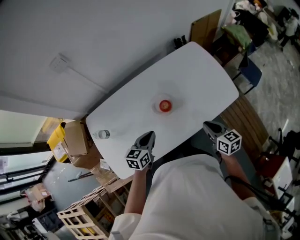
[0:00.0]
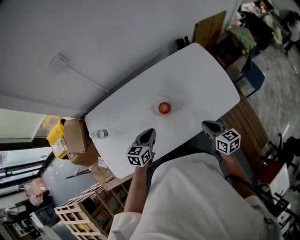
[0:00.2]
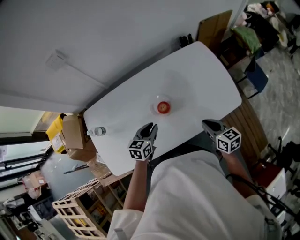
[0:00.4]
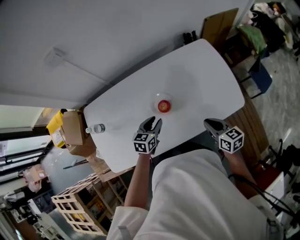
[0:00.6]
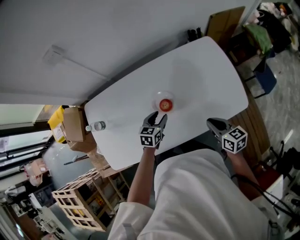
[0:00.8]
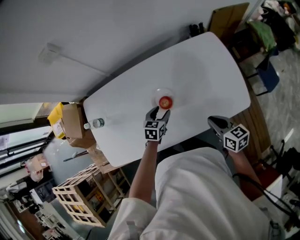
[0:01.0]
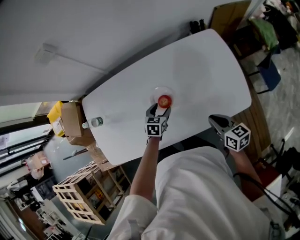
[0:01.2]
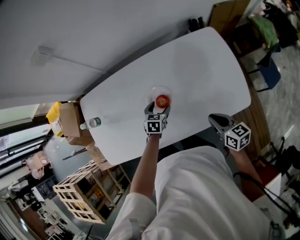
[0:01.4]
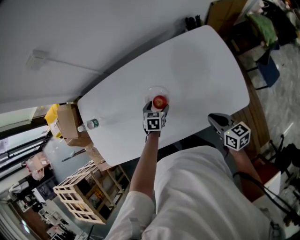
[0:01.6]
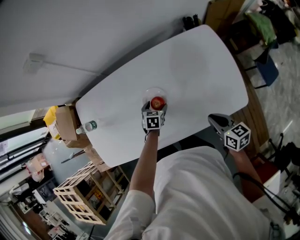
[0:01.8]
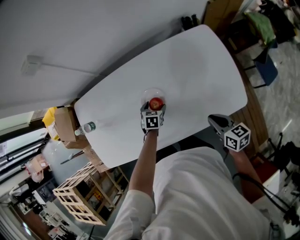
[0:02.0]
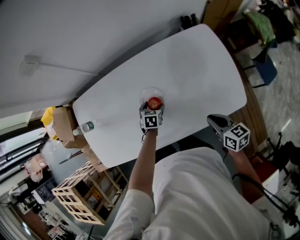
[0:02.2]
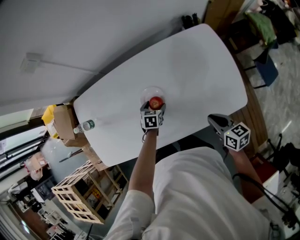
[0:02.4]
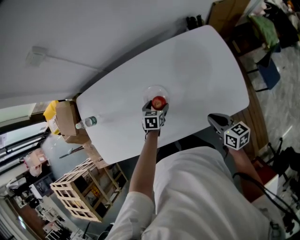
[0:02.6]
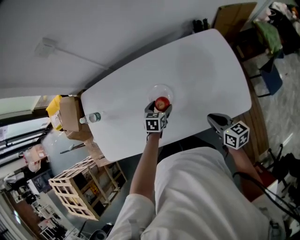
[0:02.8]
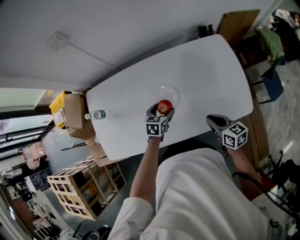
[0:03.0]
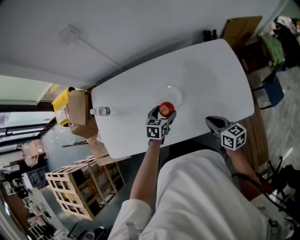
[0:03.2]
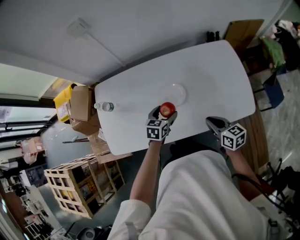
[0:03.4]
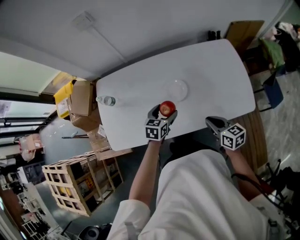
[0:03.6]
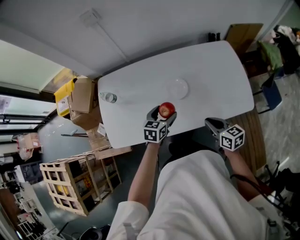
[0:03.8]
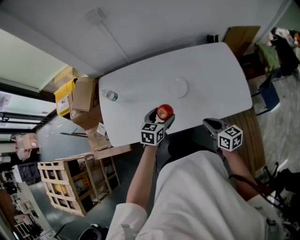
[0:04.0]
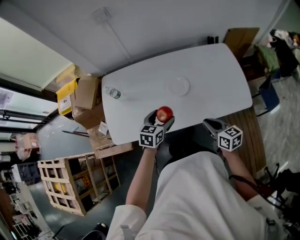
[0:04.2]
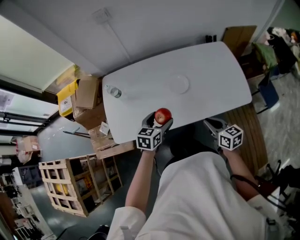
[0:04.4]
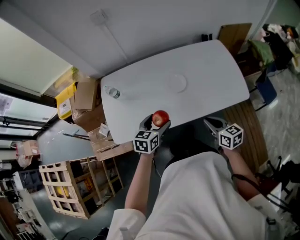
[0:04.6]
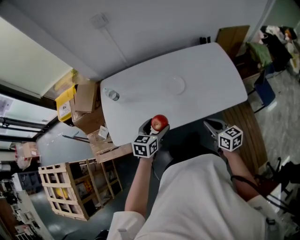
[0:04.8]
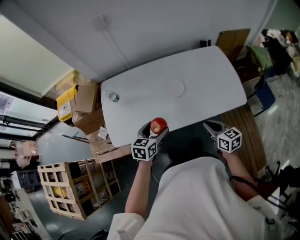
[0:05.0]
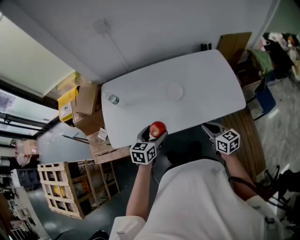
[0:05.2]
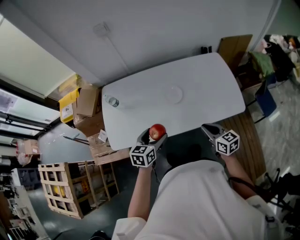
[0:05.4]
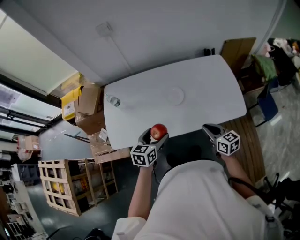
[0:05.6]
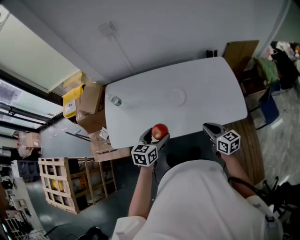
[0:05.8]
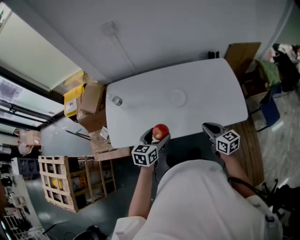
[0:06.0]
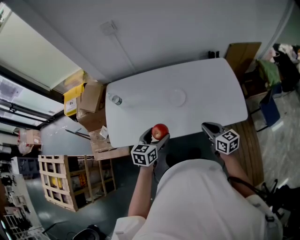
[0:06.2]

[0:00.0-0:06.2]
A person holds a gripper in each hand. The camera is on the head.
0:00.0 to 0:01.6: The left gripper goes about 25 cm downward, forward and to the right, turns by about 30 degrees, and opens its fingers. The right gripper shifts roughly 10 cm forward, to the right and downward.
0:01.6 to 0:03.2: The left gripper goes some 10 cm upward. The right gripper heads to the left, covering approximately 5 cm.
0:03.2 to 0:04.6: The right gripper travels backward and to the left by approximately 15 cm. The left gripper shifts approximately 25 cm backward, to the left and upward.
0:04.6 to 0:06.2: The right gripper travels forward by about 5 cm.

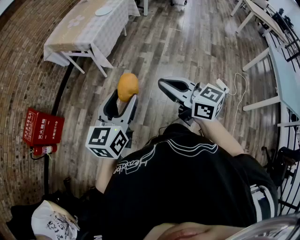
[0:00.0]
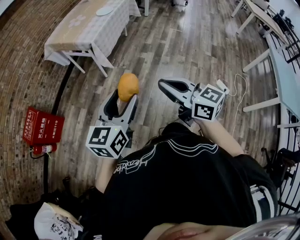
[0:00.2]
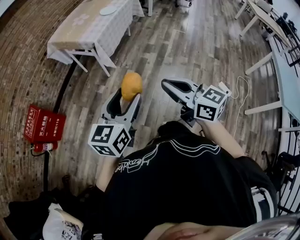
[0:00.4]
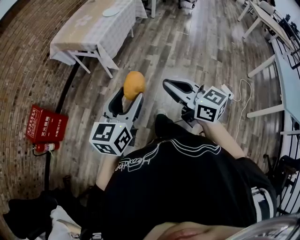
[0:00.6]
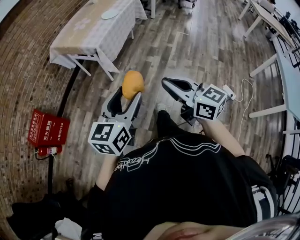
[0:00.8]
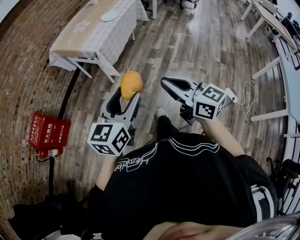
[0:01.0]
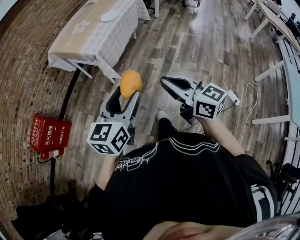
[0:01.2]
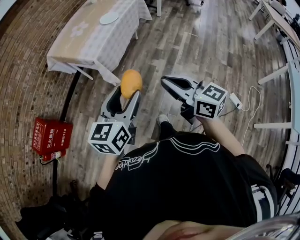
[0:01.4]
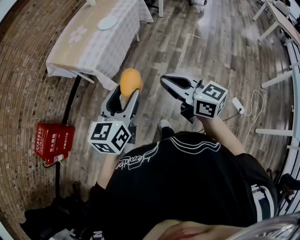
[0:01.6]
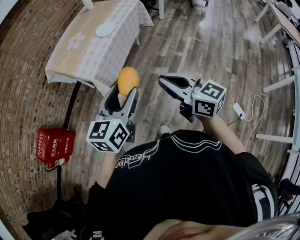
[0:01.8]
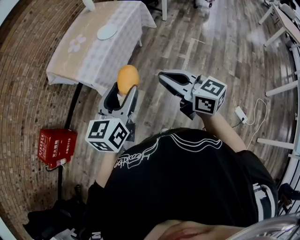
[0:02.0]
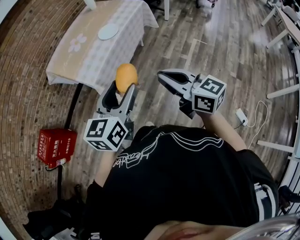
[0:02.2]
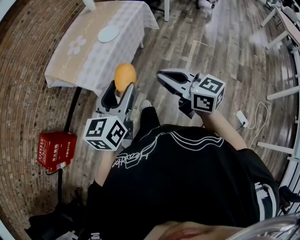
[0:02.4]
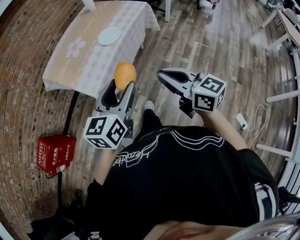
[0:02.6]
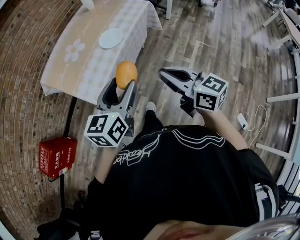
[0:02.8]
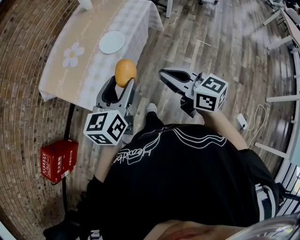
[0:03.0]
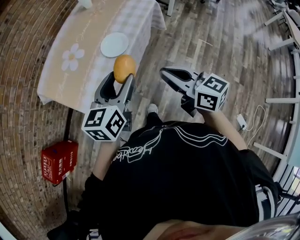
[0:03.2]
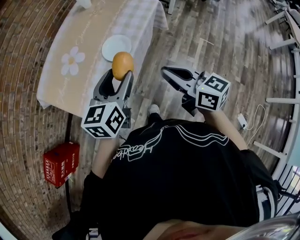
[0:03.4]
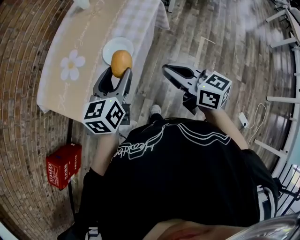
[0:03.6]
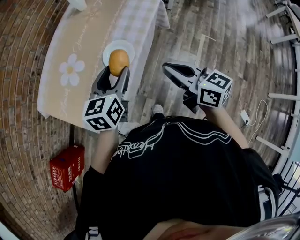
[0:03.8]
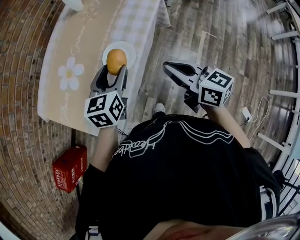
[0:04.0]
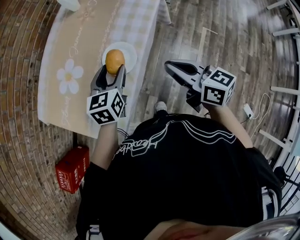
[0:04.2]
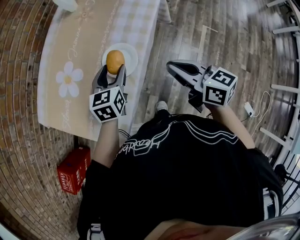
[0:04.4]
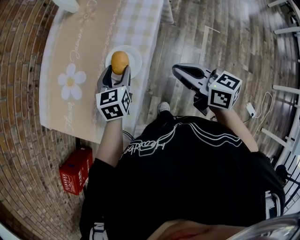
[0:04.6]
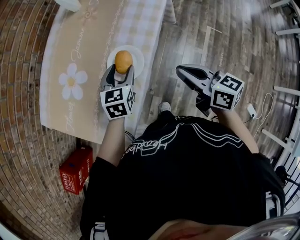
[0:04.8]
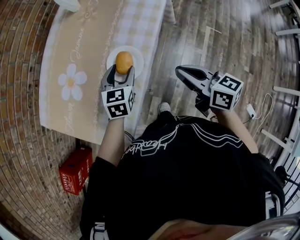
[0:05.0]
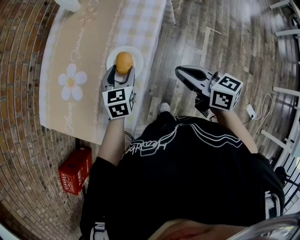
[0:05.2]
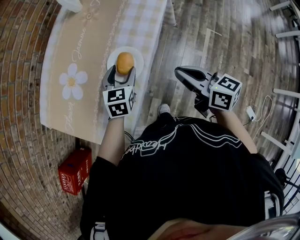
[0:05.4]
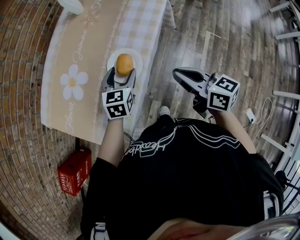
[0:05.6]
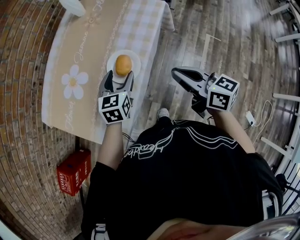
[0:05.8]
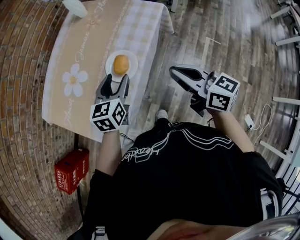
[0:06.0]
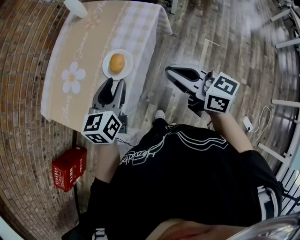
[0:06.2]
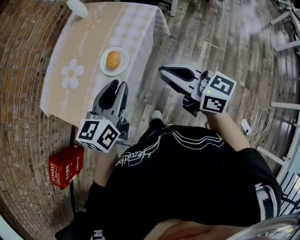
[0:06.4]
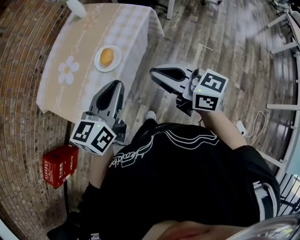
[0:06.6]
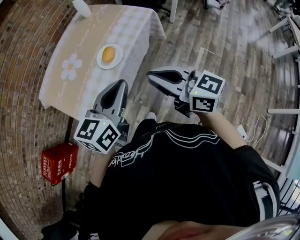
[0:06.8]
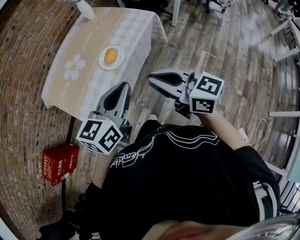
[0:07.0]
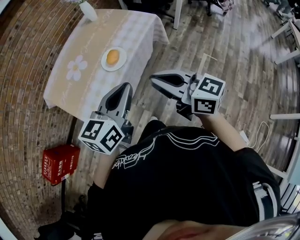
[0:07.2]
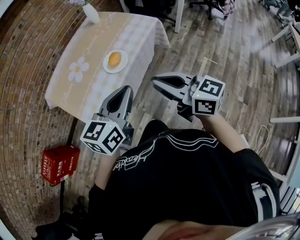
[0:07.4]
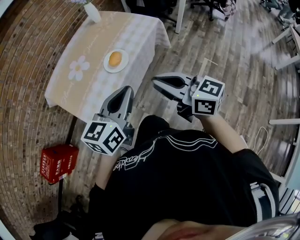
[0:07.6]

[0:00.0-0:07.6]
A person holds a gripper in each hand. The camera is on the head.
0:00.0 to 0:01.6: The left gripper moves forward and to the right, about 30 cm. Meanwhile the right gripper goes about 30 cm forward.
0:01.6 to 0:03.0: The grippers both shift forward by approximately 40 cm.
0:03.0 to 0:04.6: Both grippers travel together forward and downward, roughly 30 cm. The left gripper swivels about 20 degrees.
0:04.6 to 0:06.0: The right gripper travels upward by some 5 cm, while the left gripper shifts some 10 cm upward and backward.
0:06.0 to 0:07.6: The right gripper travels backward and upward by approximately 20 cm, and rotates approximately 20 degrees. The left gripper shifts about 30 cm backward and upward, and closes its fingers.

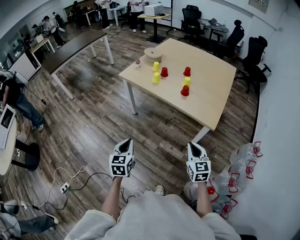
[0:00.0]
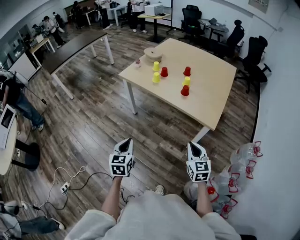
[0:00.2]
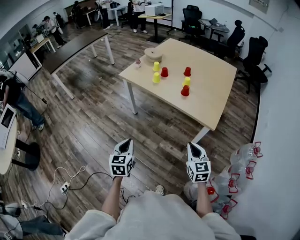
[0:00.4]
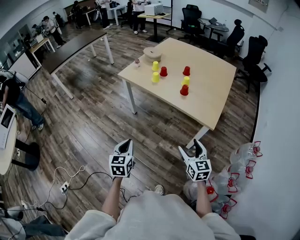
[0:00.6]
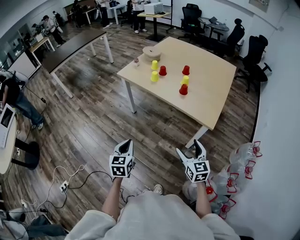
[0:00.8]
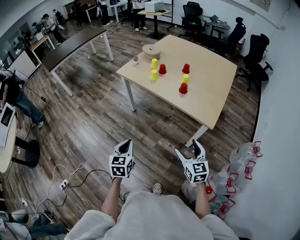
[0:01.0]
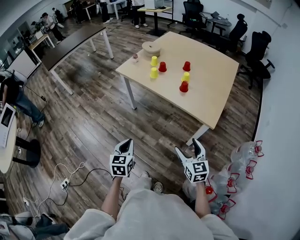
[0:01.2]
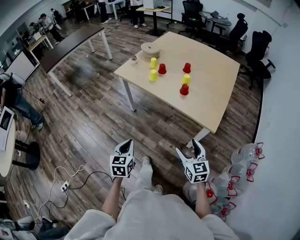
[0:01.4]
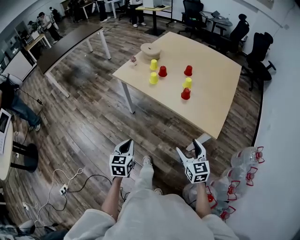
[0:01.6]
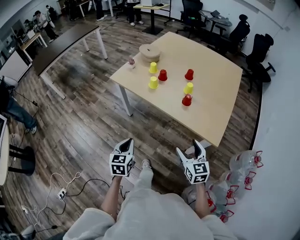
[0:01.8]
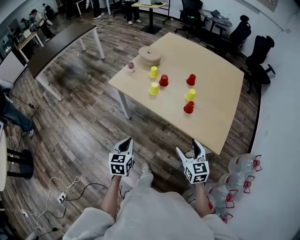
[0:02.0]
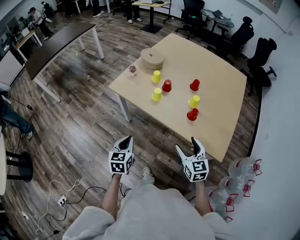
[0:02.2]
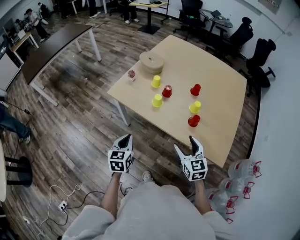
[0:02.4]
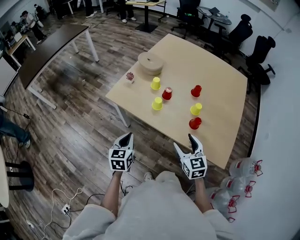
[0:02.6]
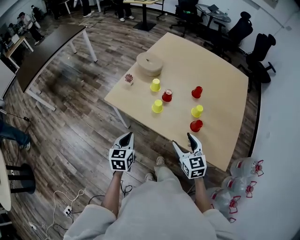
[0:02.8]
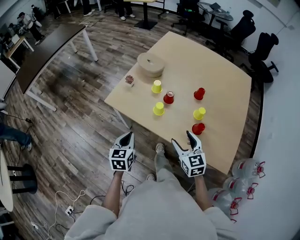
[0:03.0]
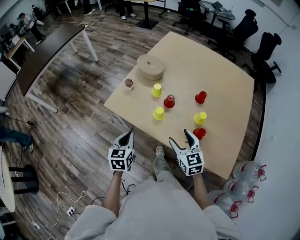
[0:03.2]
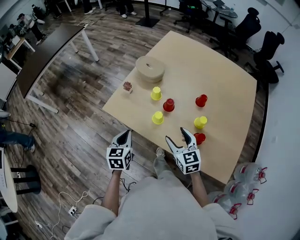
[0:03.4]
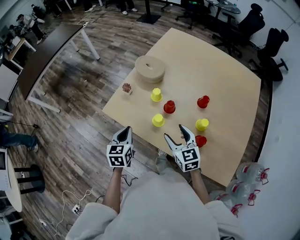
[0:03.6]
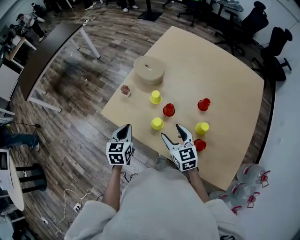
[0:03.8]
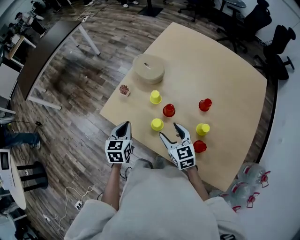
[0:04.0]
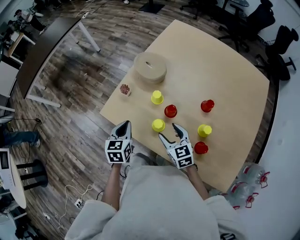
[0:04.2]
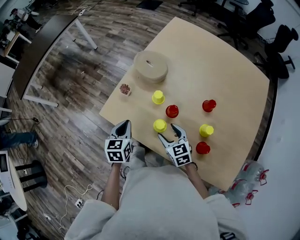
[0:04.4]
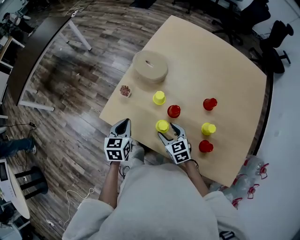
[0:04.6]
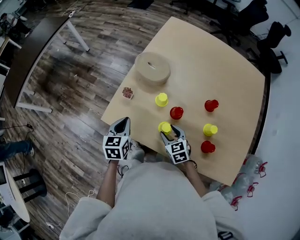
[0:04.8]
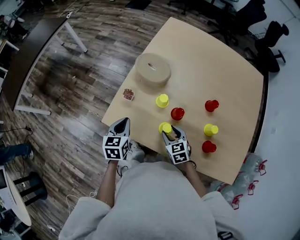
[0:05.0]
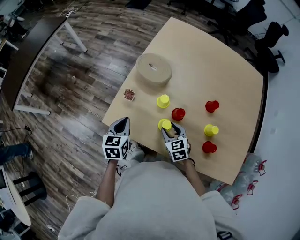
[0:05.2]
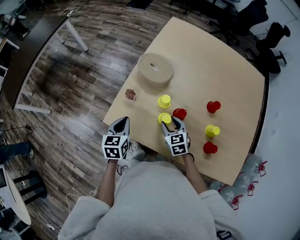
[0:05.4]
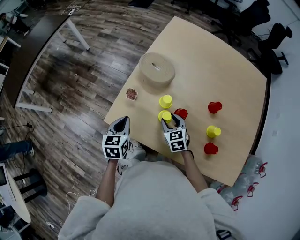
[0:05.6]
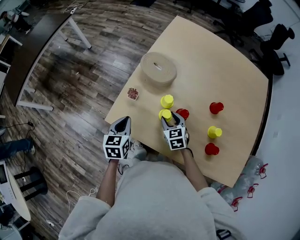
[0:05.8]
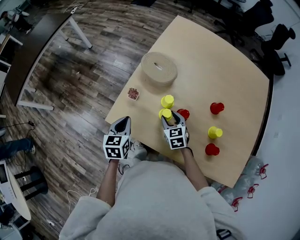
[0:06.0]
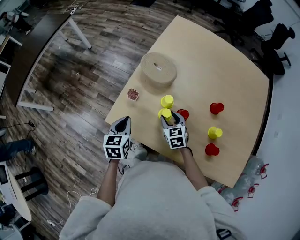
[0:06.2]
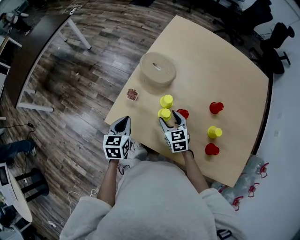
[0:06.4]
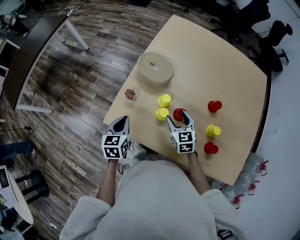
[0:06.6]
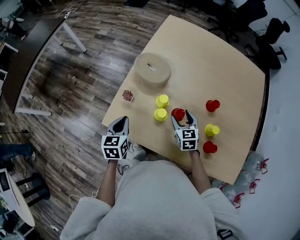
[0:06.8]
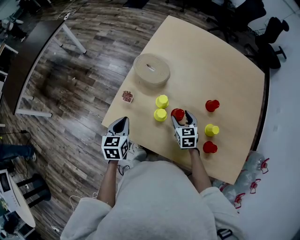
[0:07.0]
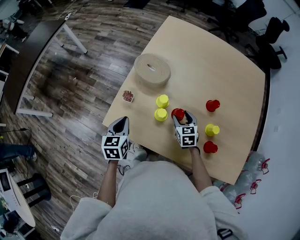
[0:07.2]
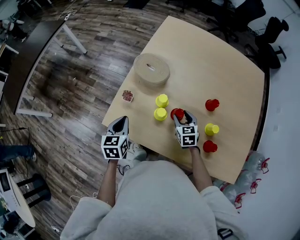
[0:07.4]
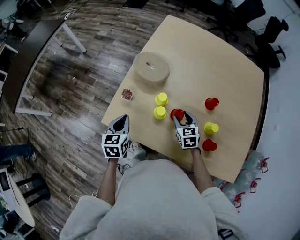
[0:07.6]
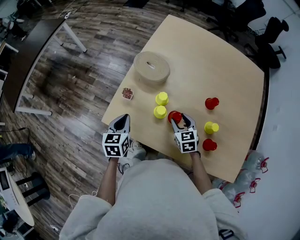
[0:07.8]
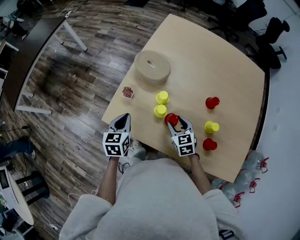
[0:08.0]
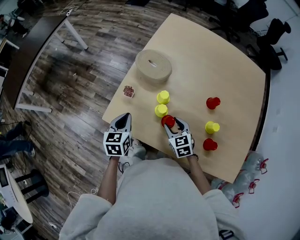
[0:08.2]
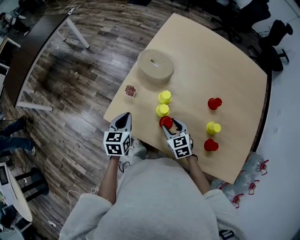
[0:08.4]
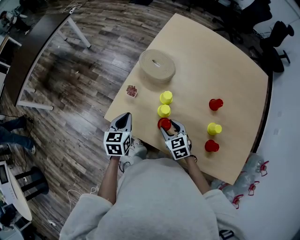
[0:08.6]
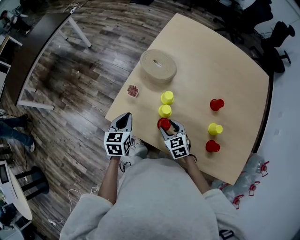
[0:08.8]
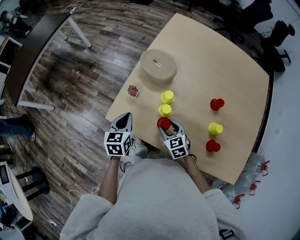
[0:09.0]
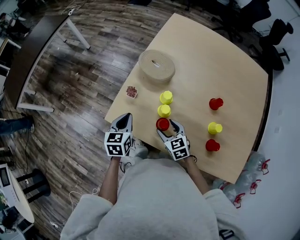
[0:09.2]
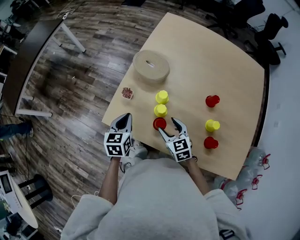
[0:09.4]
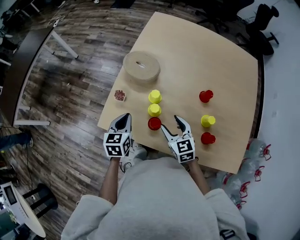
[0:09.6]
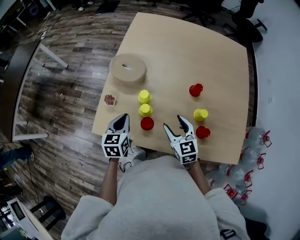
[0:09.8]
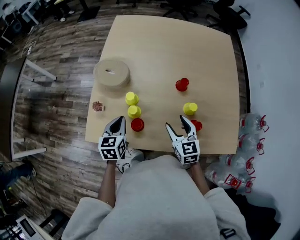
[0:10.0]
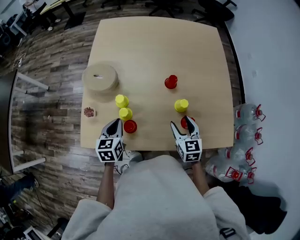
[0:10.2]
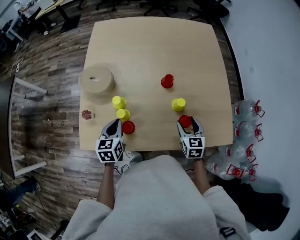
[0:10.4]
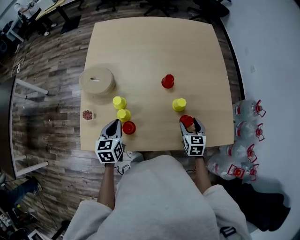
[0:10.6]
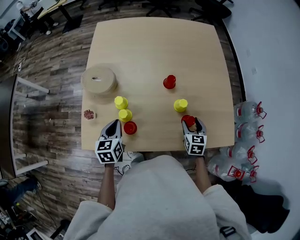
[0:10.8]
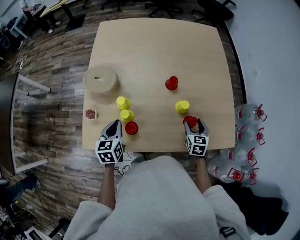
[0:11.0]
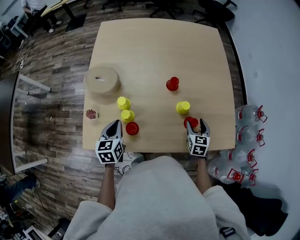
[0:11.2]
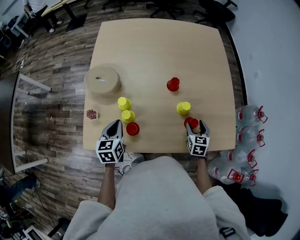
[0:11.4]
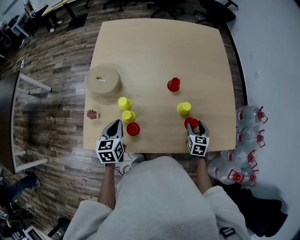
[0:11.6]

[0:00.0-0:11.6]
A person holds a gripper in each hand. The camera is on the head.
0:00.0 to 0:01.4: The left gripper ends up roughly 5 cm from where it was. The right gripper changes place by some 5 cm, and opens its fingers.
0:01.4 to 0:02.8: Both grippers travel together forward, roughly 35 cm.
0:02.8 to 0:04.4: The left gripper shifts approximately 20 cm forward. The right gripper goes some 25 cm forward and downward.
0:04.4 to 0:05.8: The left gripper is displaced forward and to the left by roughly 10 cm. Meanwhile the right gripper travels forward by approximately 10 cm.
0:05.8 to 0:07.2: The right gripper is displaced to the right by roughly 10 cm.
0:07.2 to 0:08.8: The right gripper moves to the left and backward, roughly 15 cm.
0:08.8 to 0:10.2: The right gripper shifts by about 25 cm, and changes its angle by approximately 40 degrees. Meanwhile the left gripper changes place by about 15 cm, and swivels roughly 20 degrees.
0:10.2 to 0:11.6: The right gripper goes some 15 cm to the right and downward, and changes its angle by approximately 20 degrees.
